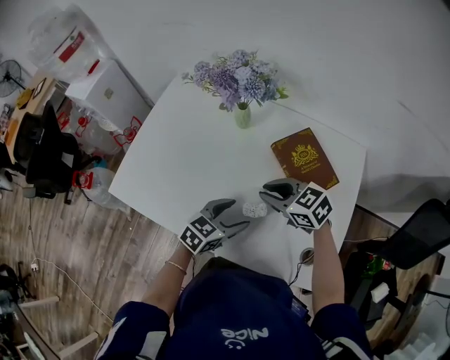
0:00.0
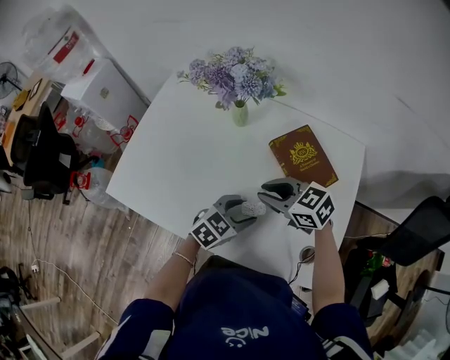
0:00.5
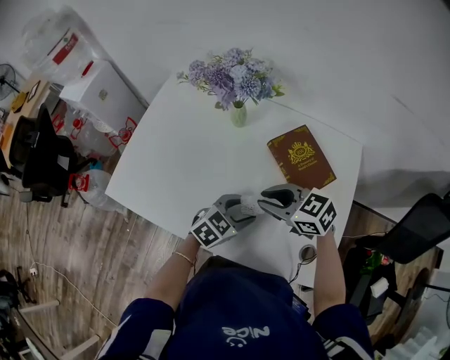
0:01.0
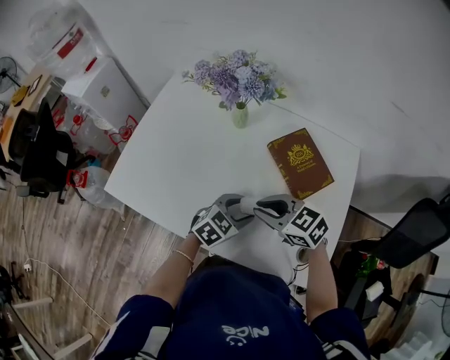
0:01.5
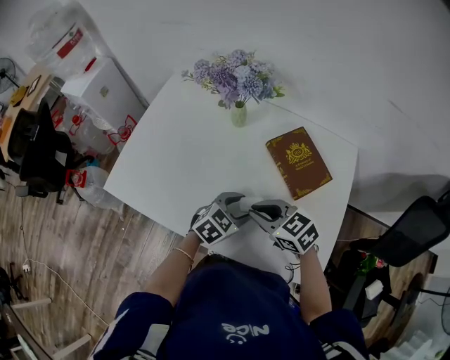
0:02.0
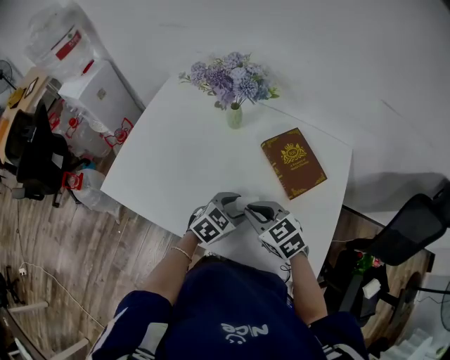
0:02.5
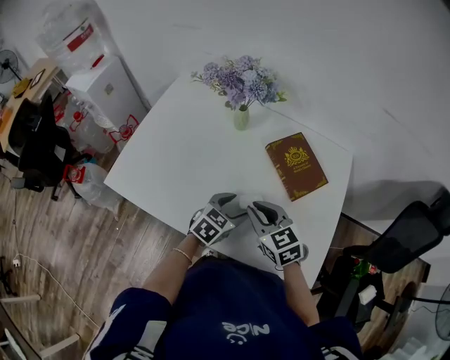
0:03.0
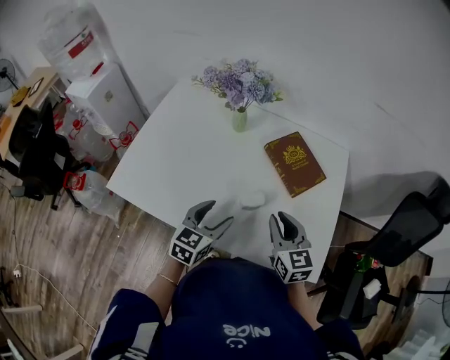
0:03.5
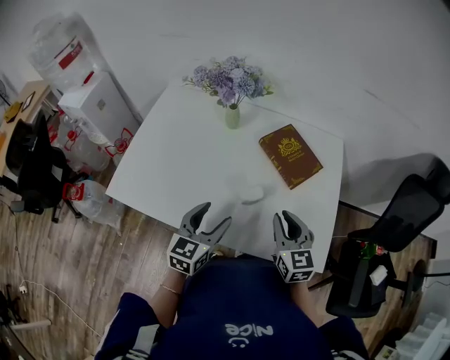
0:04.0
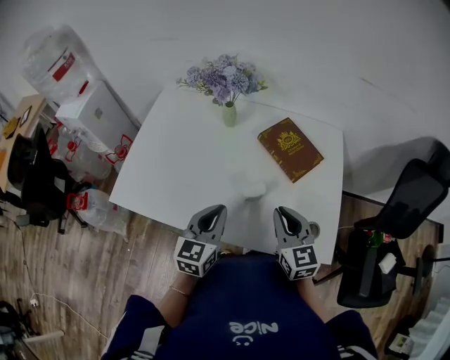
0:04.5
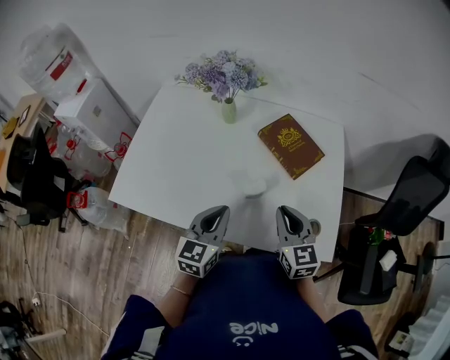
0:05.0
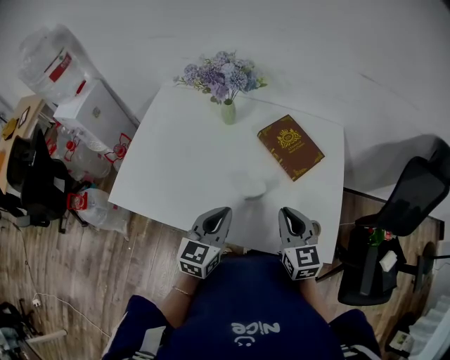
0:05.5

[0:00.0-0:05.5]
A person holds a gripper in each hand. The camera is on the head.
0:00.0 to 0:02.0: The right gripper moves some 5 cm.
0:02.0 to 0:03.5: The left gripper heads to the left, upward and backward, covering roughly 10 cm, and turns by about 30 degrees. Meanwhile the right gripper goes some 5 cm to the right, and swivels about 40 degrees.
0:03.5 to 0:05.5: The left gripper closes.

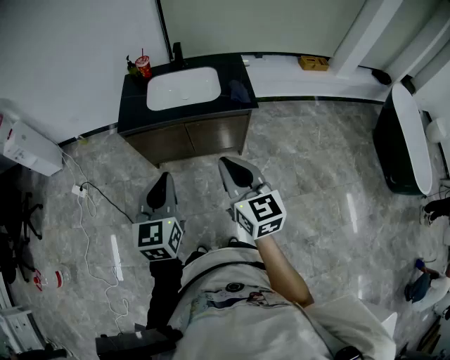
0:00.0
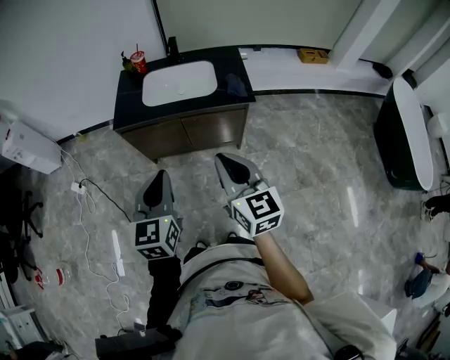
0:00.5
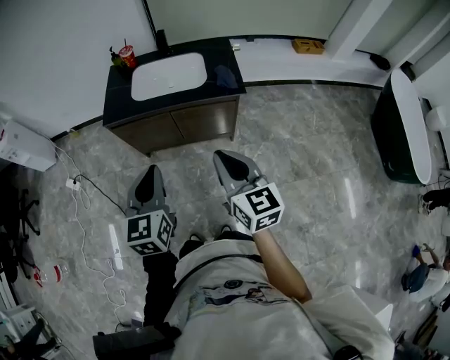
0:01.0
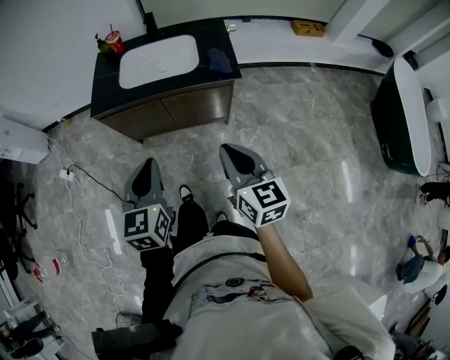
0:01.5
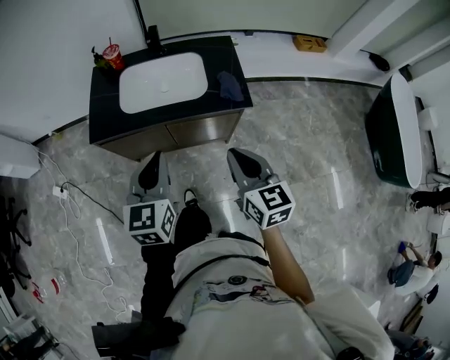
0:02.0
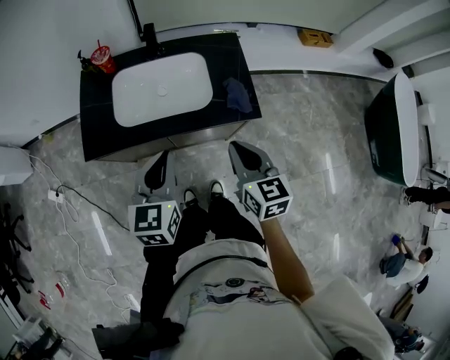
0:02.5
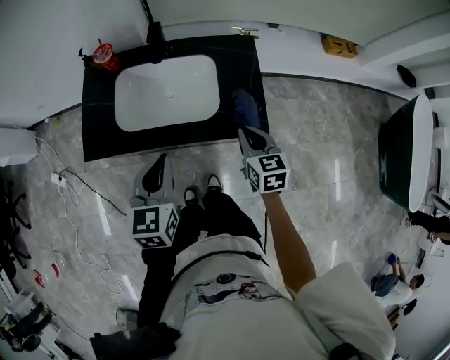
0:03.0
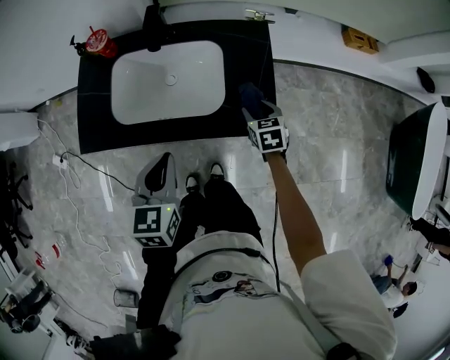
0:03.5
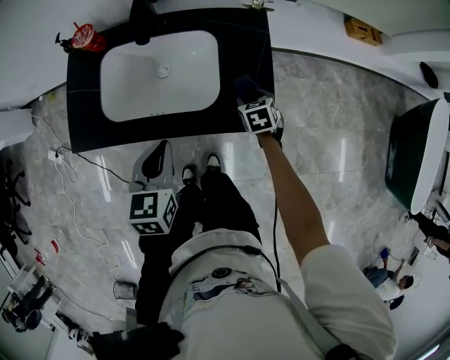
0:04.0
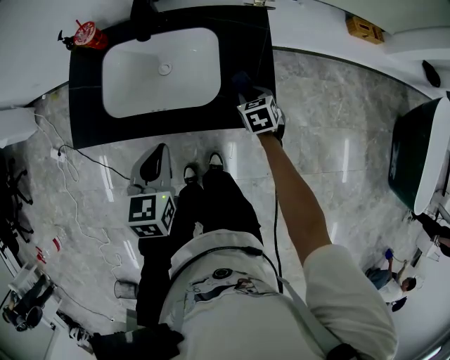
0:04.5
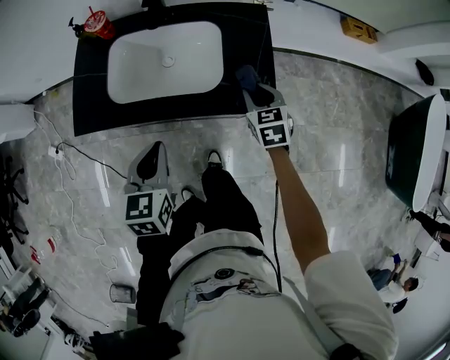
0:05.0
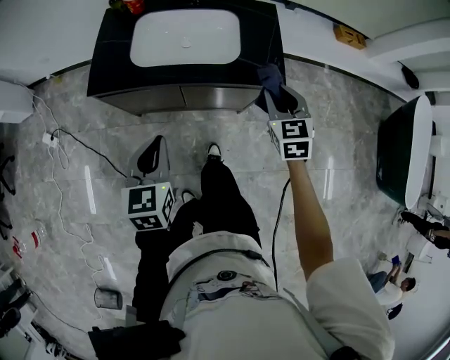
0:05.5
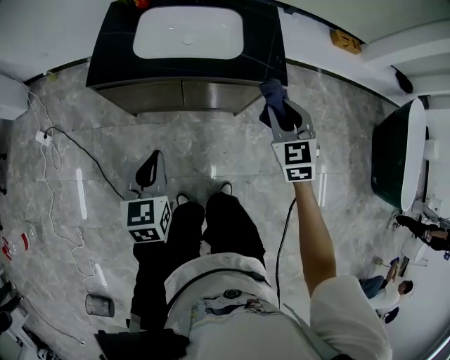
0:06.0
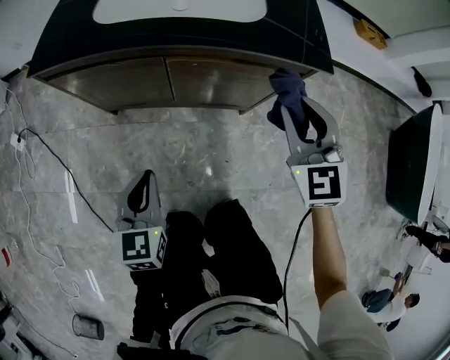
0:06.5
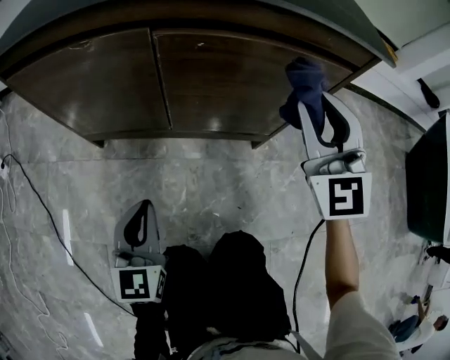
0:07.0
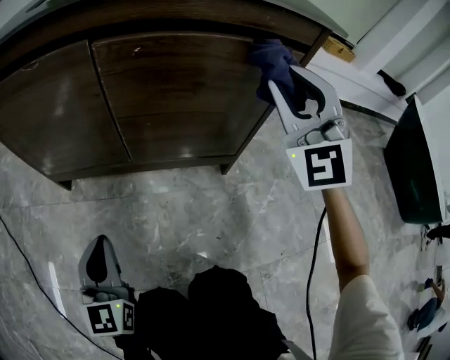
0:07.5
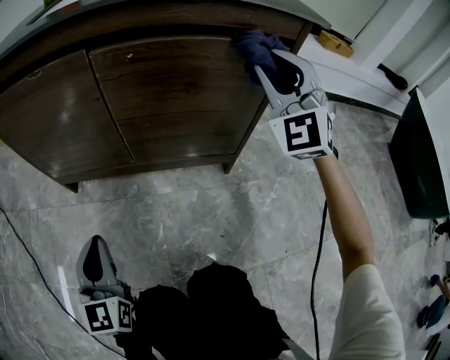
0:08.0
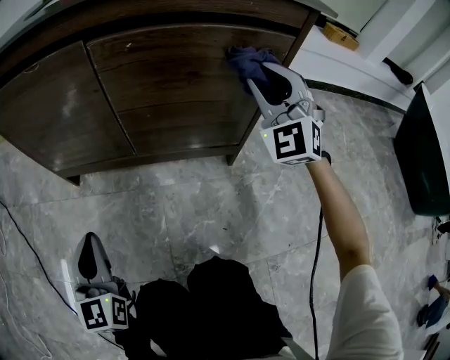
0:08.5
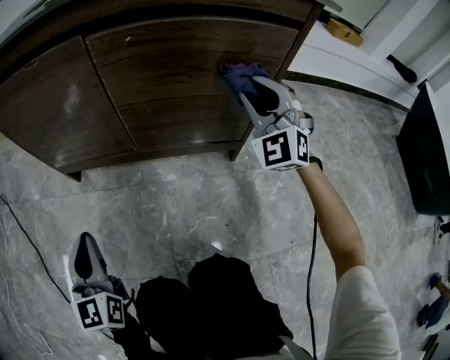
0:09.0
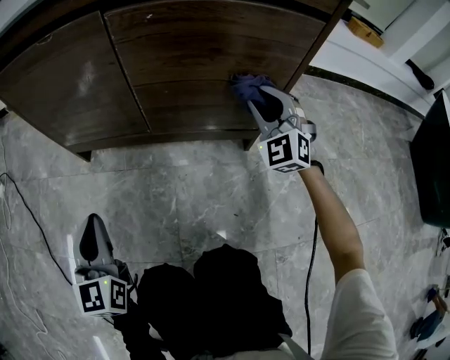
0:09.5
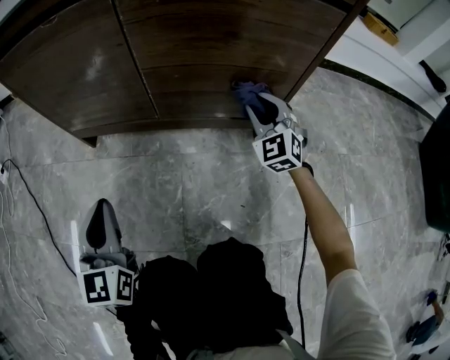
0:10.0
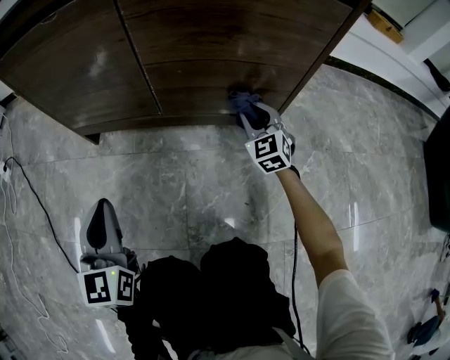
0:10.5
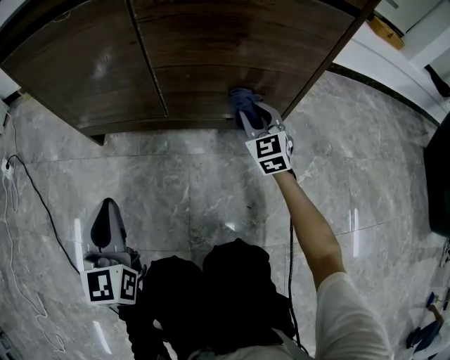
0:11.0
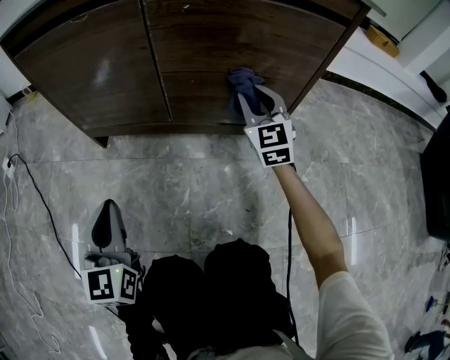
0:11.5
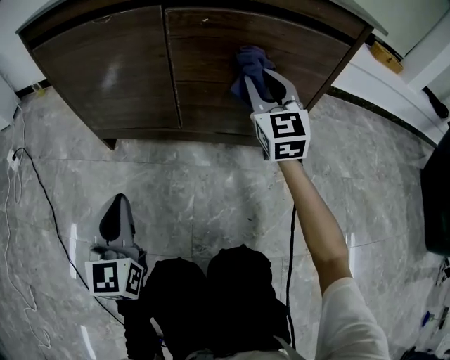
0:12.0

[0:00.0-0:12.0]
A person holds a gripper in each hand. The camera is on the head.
0:00.0 to 0:02.0: The left gripper moves forward, some 20 cm, while the right gripper travels forward, downward and to the right by approximately 20 cm.
0:02.0 to 0:04.0: The left gripper moves forward and downward, approximately 25 cm, and changes its angle by approximately 20 degrees, while the right gripper is displaced forward and downward by some 50 cm, tilts its fingers approximately 40 degrees downward, and opens up.
0:04.0 to 0:06.0: The right gripper heads backward and upward, covering approximately 35 cm, swivels approximately 40 degrees, and closes up. Meanwhile the left gripper goes some 30 cm backward and to the left.
0:06.0 to 0:08.0: The left gripper shifts approximately 50 cm downward, and rotates some 20 degrees; the right gripper heads downward and forward, covering about 30 cm, and tilts its fingers some 30 degrees upward.
0:08.0 to 0:10.0: The right gripper heads downward, covering approximately 30 cm, and changes its angle by about 30 degrees.
0:10.0 to 0:12.0: The right gripper travels upward and to the left by about 20 cm, and swivels approximately 30 degrees.

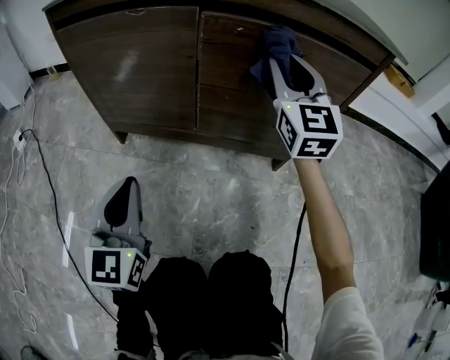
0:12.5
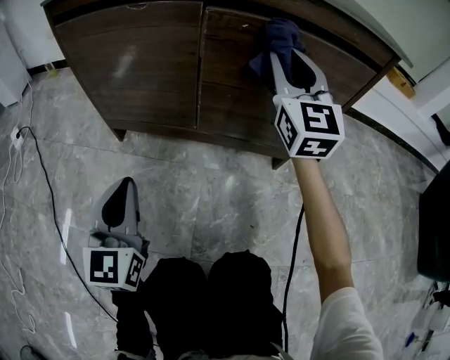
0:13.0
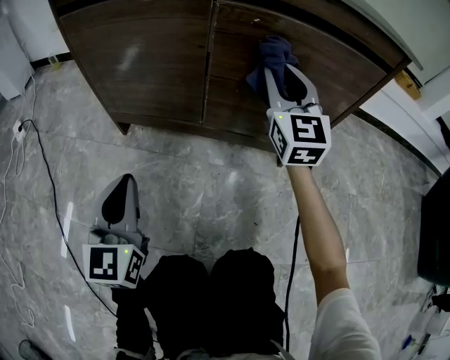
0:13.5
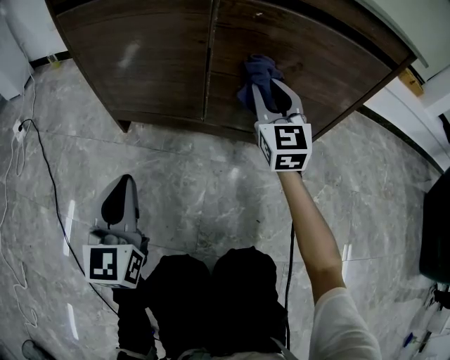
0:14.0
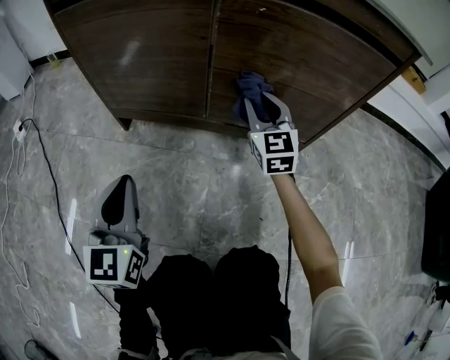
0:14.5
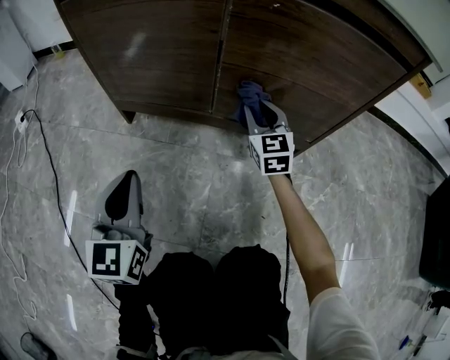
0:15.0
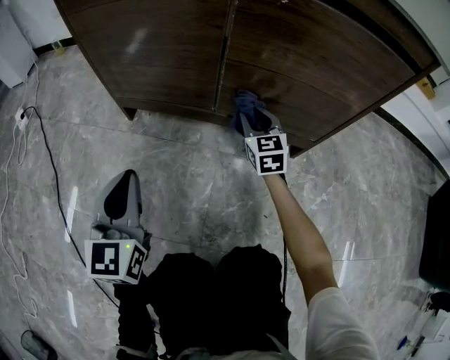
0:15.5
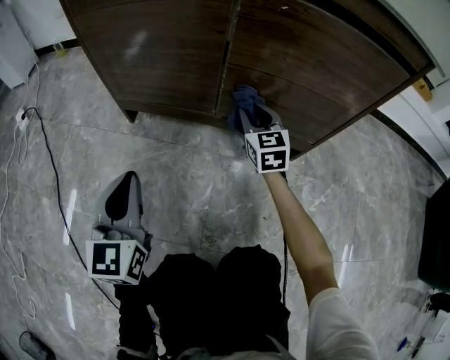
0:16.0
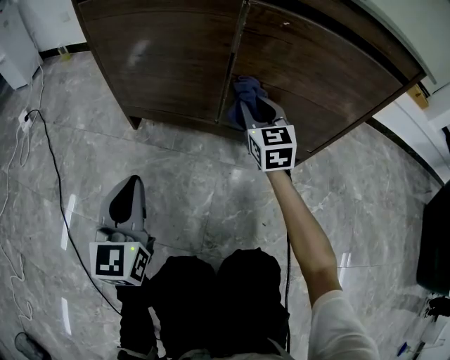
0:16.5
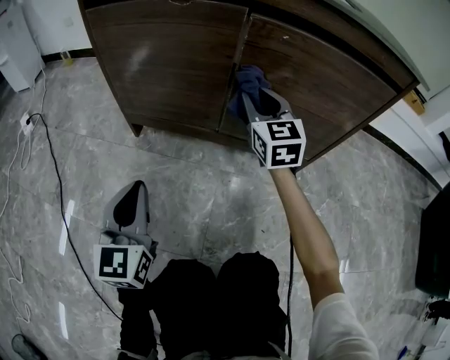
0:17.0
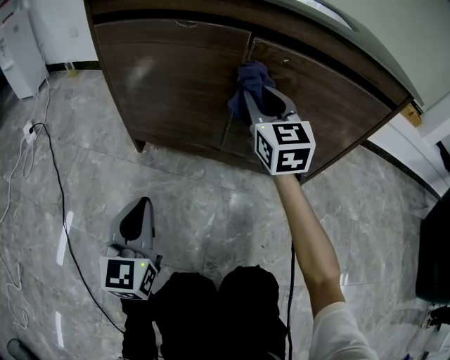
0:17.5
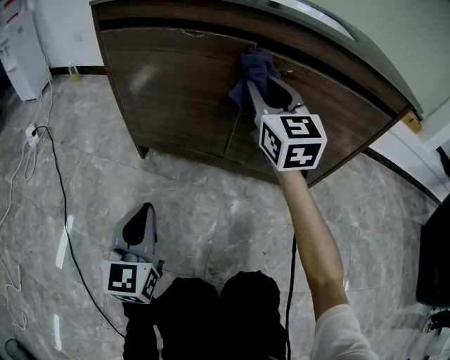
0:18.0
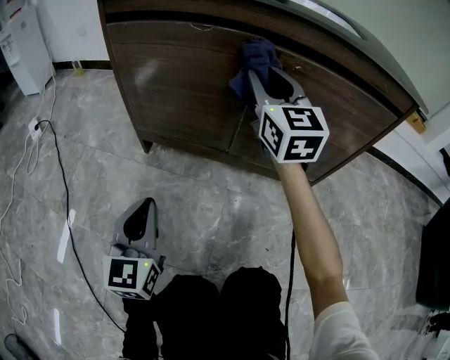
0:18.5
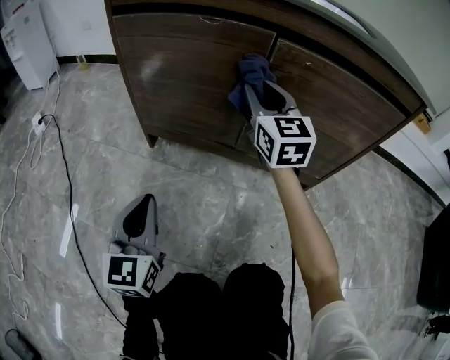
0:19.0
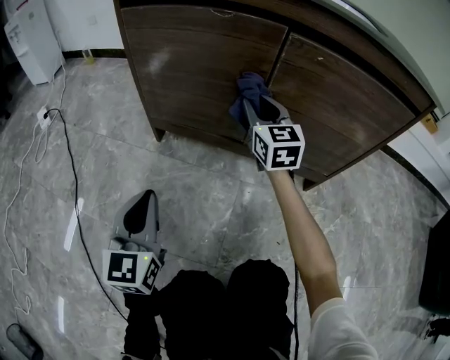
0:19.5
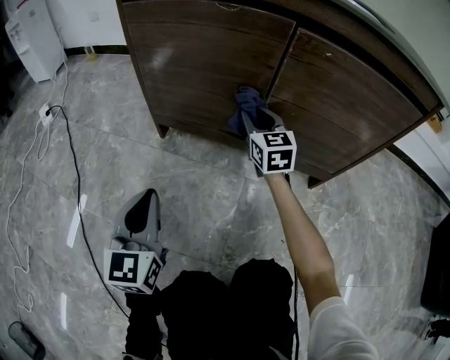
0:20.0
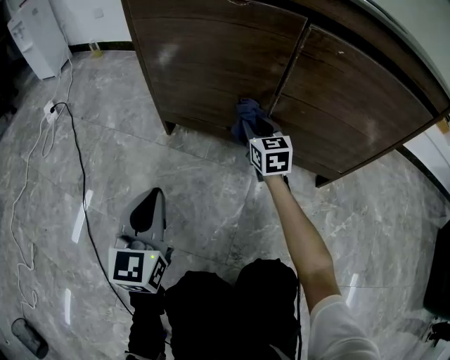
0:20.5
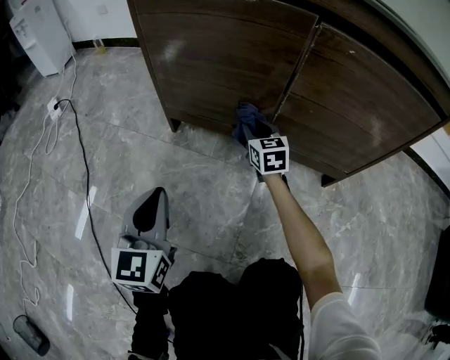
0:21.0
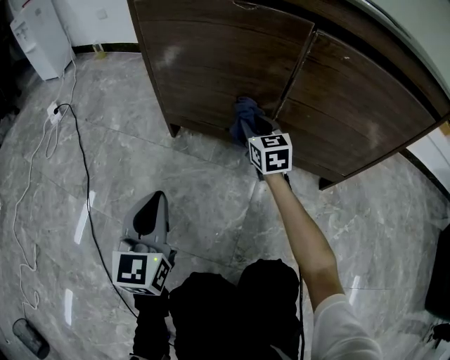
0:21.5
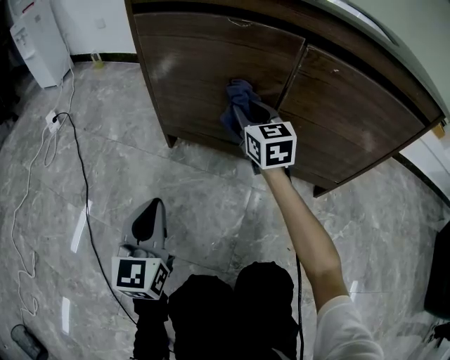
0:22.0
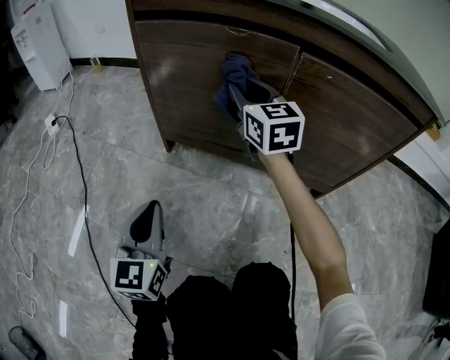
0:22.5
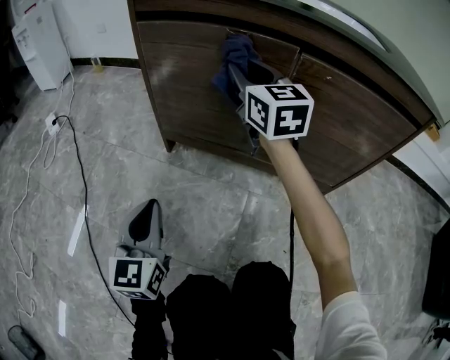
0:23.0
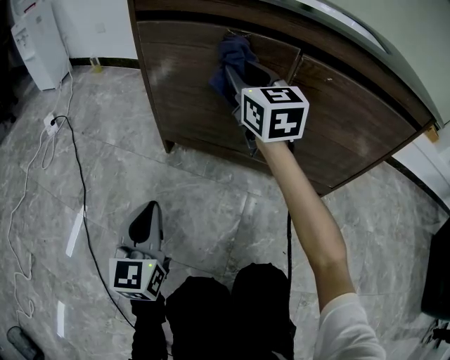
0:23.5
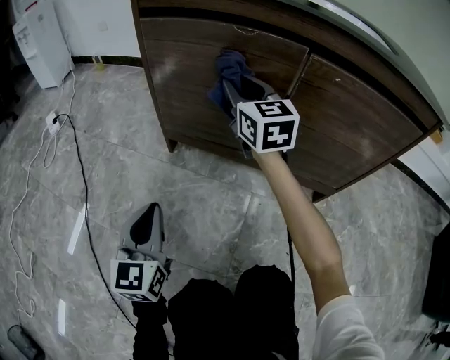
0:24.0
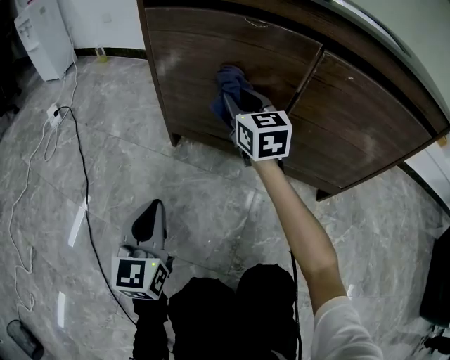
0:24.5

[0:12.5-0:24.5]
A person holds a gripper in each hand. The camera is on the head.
0:12.5 to 0:14.5: The left gripper changes place by about 5 cm. Meanwhile the right gripper heads downward, covering some 20 cm.
0:14.5 to 0:16.5: The right gripper goes downward and returns, roughly 10 cm each way.
0:16.5 to 0:18.5: The right gripper is displaced upward by roughly 20 cm.
0:18.5 to 0:20.5: The right gripper heads downward, covering some 30 cm, and swivels some 20 degrees.
0:20.5 to 0:22.5: The right gripper heads upward, covering roughly 20 cm.
0:22.5 to 0:24.5: The right gripper heads downward, covering roughly 5 cm.
